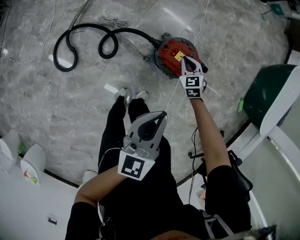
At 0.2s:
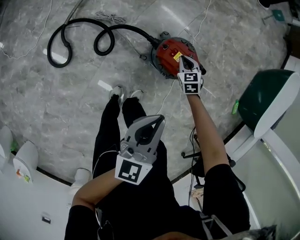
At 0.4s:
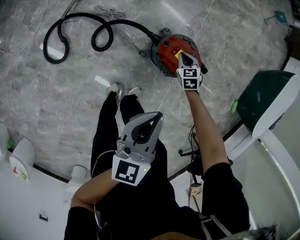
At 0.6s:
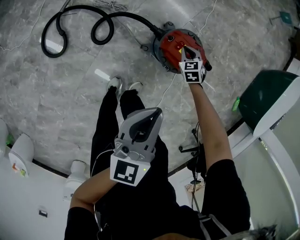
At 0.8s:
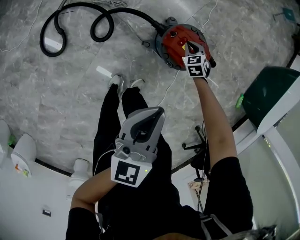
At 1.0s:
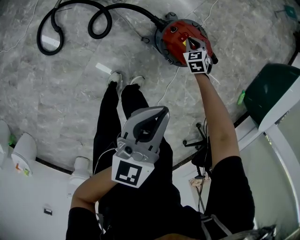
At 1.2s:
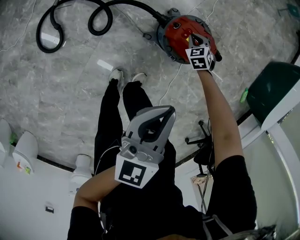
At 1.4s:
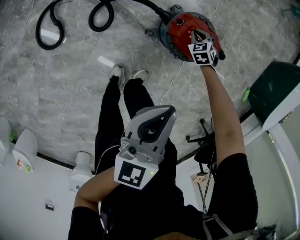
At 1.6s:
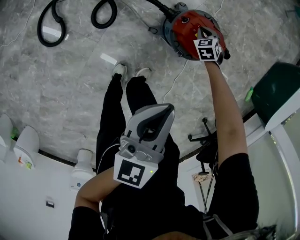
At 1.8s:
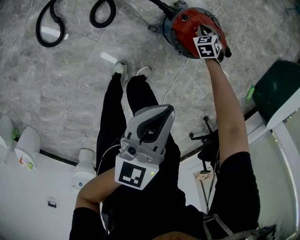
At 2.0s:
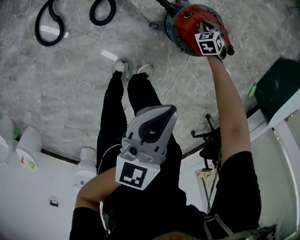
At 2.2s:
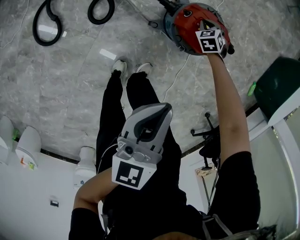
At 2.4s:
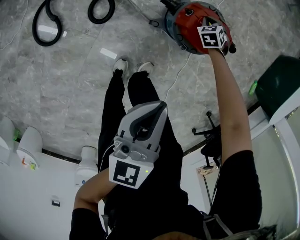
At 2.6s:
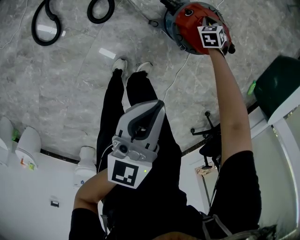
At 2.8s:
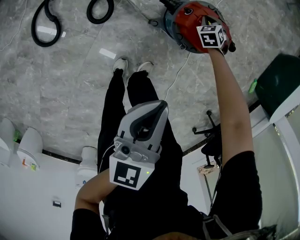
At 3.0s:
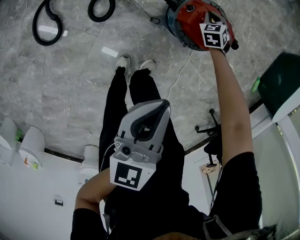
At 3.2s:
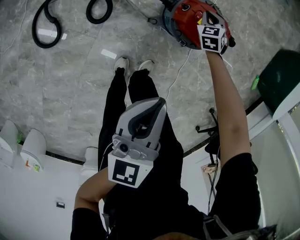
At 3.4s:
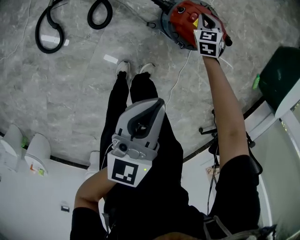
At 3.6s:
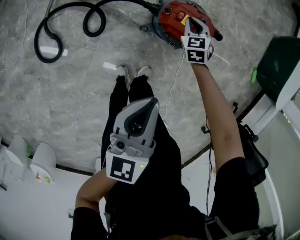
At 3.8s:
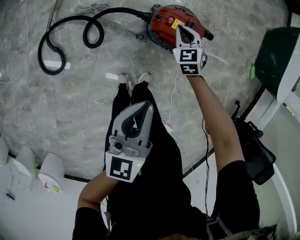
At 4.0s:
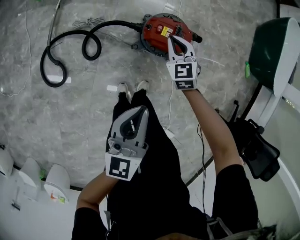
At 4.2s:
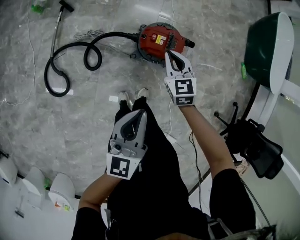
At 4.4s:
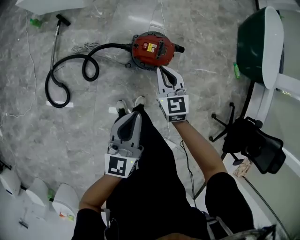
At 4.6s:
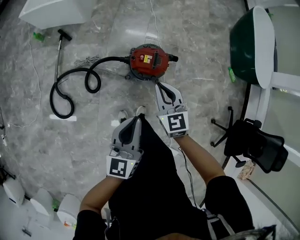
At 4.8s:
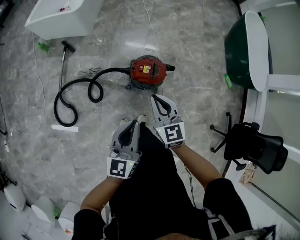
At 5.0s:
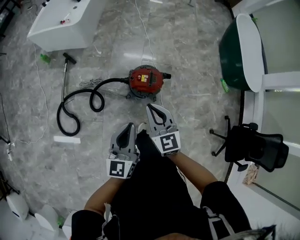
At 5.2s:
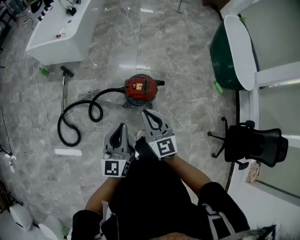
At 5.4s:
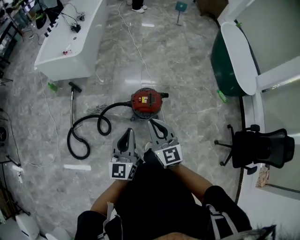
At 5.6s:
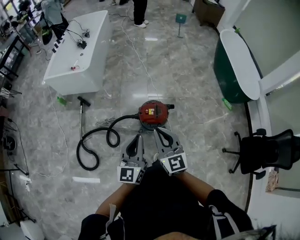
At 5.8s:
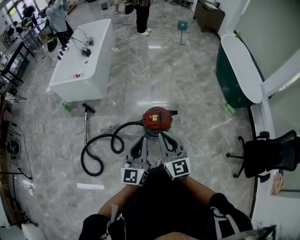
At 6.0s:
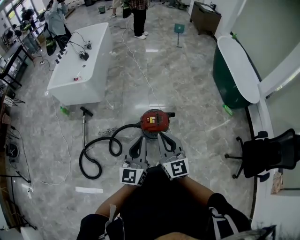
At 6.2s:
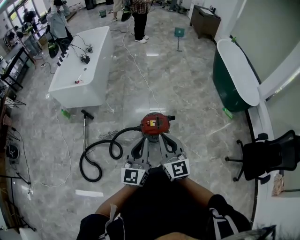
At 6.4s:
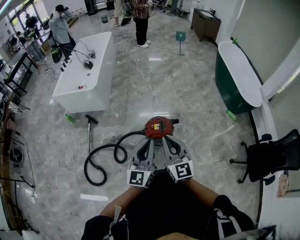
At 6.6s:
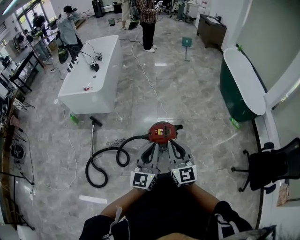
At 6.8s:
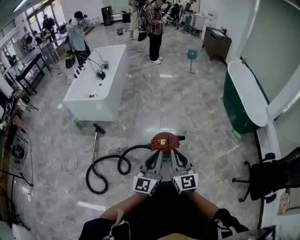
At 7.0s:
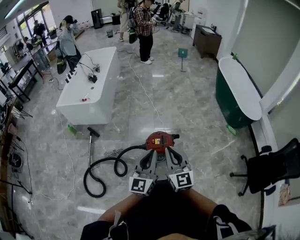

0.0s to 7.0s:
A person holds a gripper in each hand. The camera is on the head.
0.0s to 1.4s: The left gripper heads downward, covering about 10 cm. Meanwhile the right gripper moves downward, approximately 20 cm.
1.4s to 2.8s: The left gripper changes place by approximately 5 cm.
2.8s to 4.2s: The right gripper goes approximately 35 cm upward, and swivels roughly 40 degrees, while the left gripper heads upward, covering about 15 cm.
4.2s to 5.6s: The right gripper is displaced upward and backward by roughly 35 cm, and swivels about 30 degrees. Meanwhile the left gripper shifts about 20 cm upward.
5.6s to 7.0s: There are only small adjustments of the grippers.

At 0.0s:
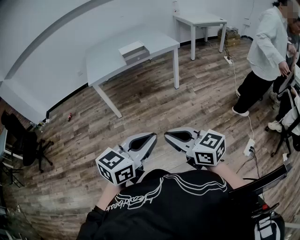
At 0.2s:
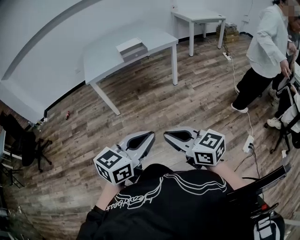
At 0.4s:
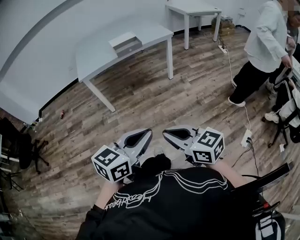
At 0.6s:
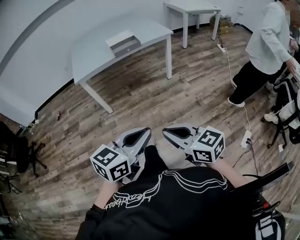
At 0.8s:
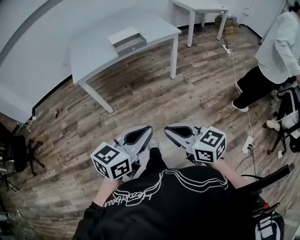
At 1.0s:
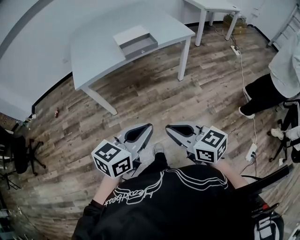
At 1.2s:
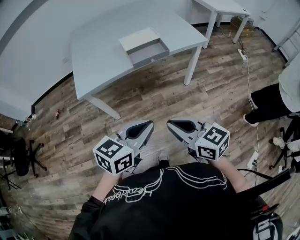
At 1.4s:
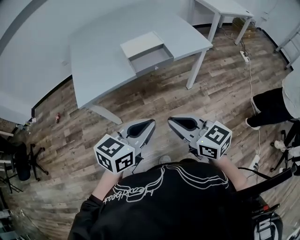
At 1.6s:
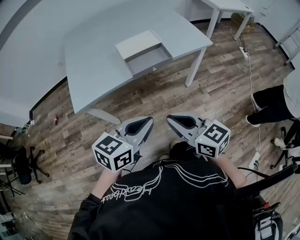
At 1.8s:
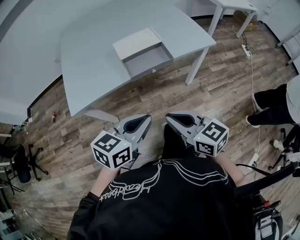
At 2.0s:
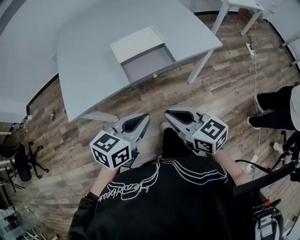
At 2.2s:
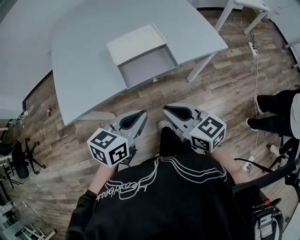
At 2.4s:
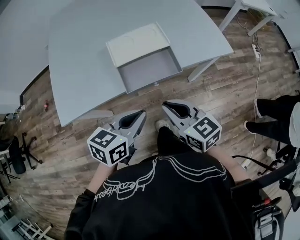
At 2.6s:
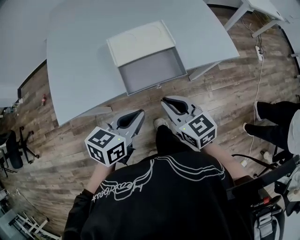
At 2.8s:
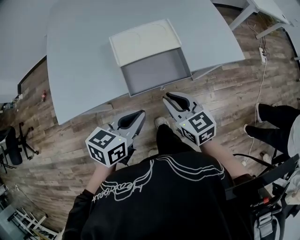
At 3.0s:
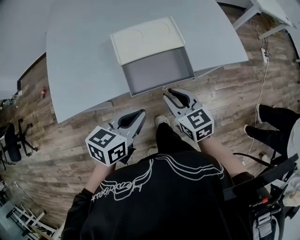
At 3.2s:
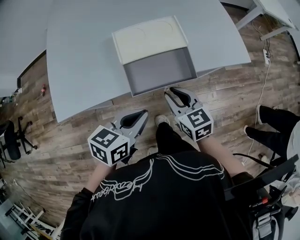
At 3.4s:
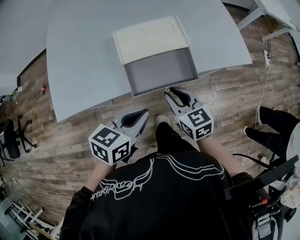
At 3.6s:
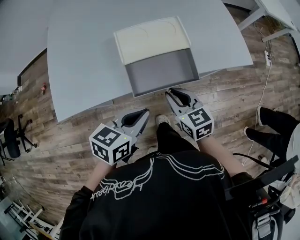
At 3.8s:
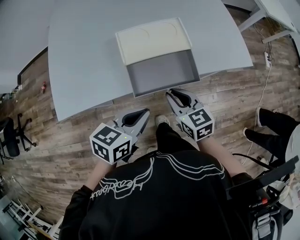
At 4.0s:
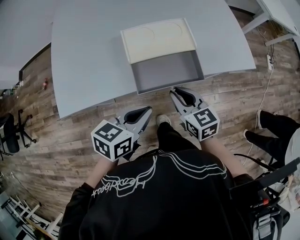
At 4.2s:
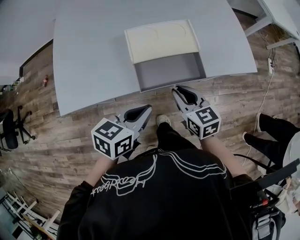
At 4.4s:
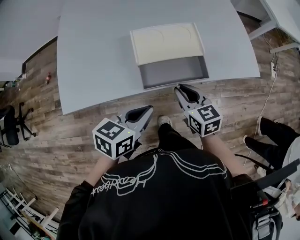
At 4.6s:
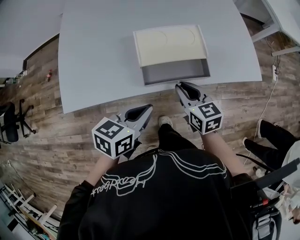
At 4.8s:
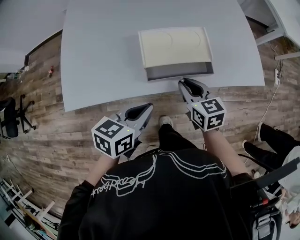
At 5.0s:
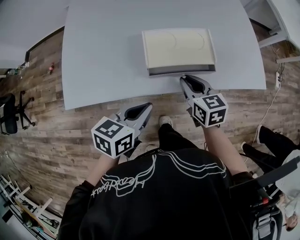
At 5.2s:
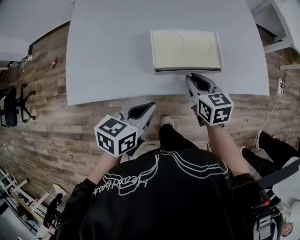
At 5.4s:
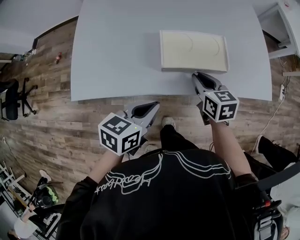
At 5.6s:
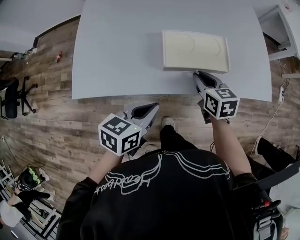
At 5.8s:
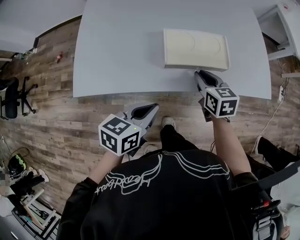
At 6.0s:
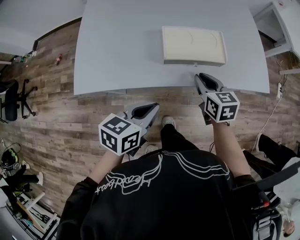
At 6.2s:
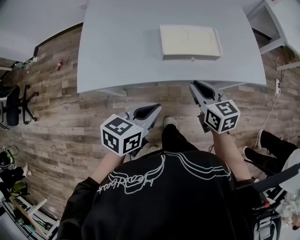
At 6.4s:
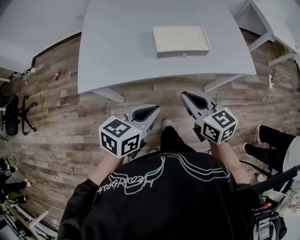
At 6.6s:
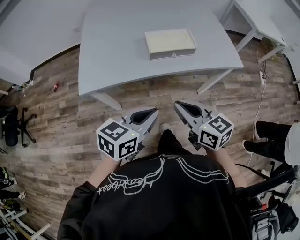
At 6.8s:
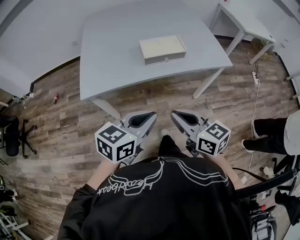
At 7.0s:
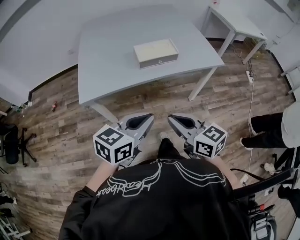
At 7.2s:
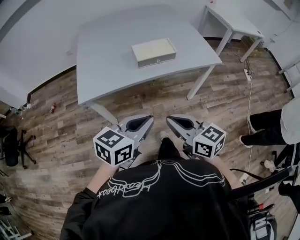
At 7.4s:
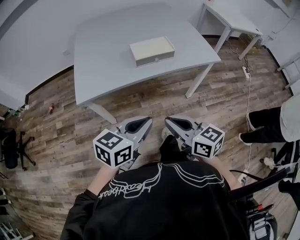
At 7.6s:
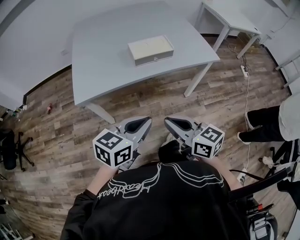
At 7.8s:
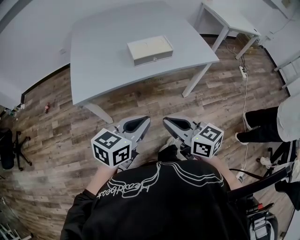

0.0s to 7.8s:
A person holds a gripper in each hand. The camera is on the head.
0.0s to 1.6s: Both grippers are carried forward, roughly 50 cm.
1.6s to 3.2s: Both grippers move forward and downward, some 30 cm. The left gripper changes its angle by some 20 degrees.
3.2s to 4.6s: The grippers move only a little.
4.6s to 6.2s: The right gripper reaches roughly 5 cm forward, then returns. The left gripper moves approximately 5 cm.
6.2s to 7.8s: The left gripper is displaced backward and upward by roughly 20 cm, and turns by about 20 degrees. The right gripper goes approximately 30 cm backward and upward.

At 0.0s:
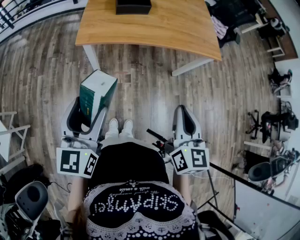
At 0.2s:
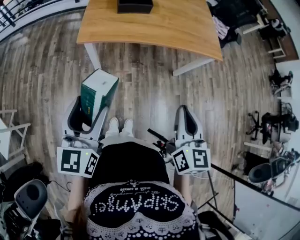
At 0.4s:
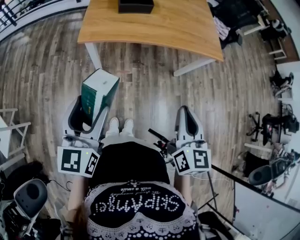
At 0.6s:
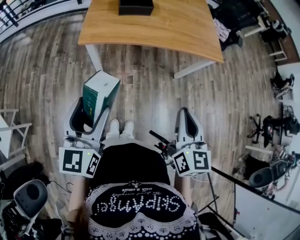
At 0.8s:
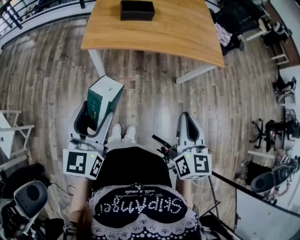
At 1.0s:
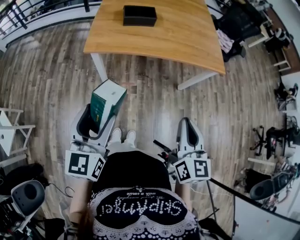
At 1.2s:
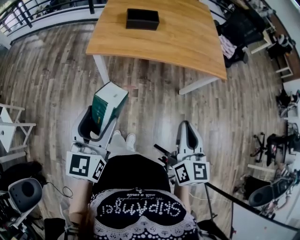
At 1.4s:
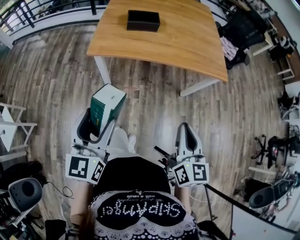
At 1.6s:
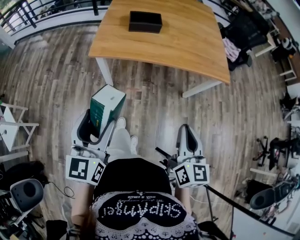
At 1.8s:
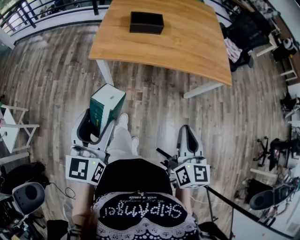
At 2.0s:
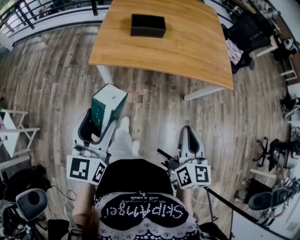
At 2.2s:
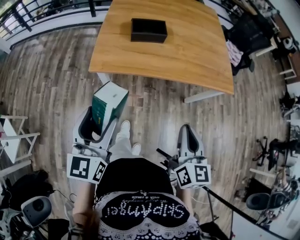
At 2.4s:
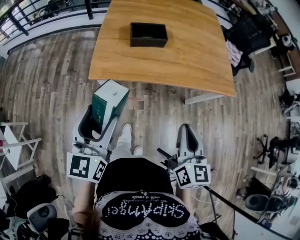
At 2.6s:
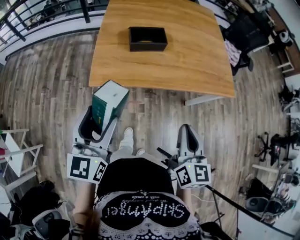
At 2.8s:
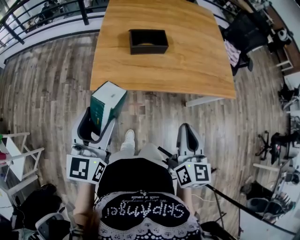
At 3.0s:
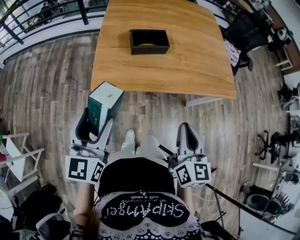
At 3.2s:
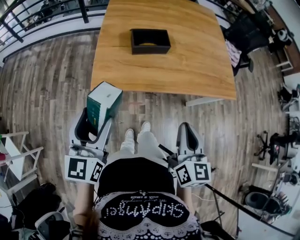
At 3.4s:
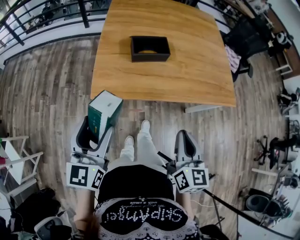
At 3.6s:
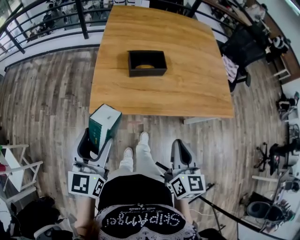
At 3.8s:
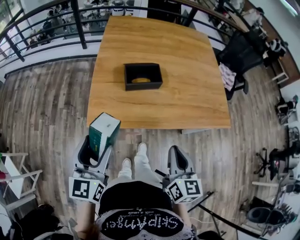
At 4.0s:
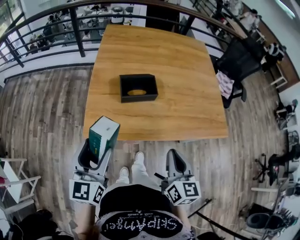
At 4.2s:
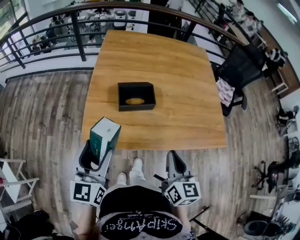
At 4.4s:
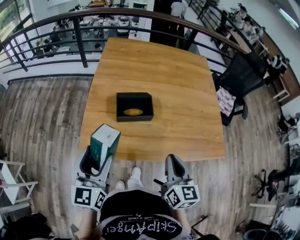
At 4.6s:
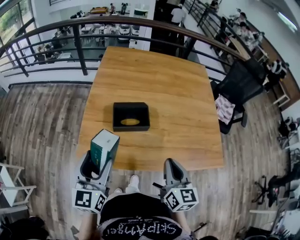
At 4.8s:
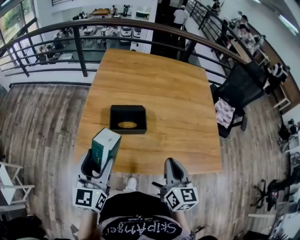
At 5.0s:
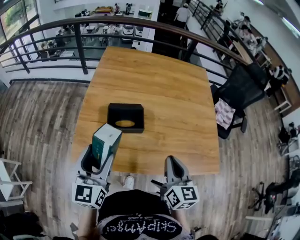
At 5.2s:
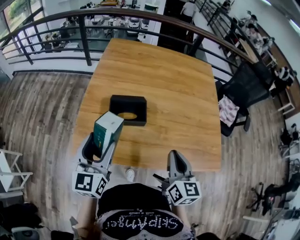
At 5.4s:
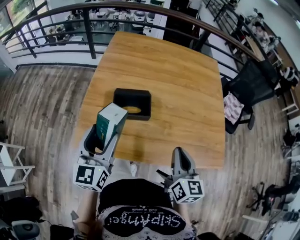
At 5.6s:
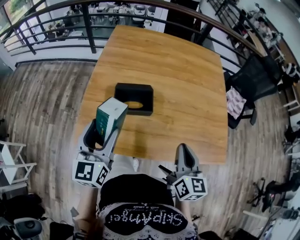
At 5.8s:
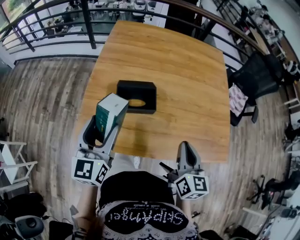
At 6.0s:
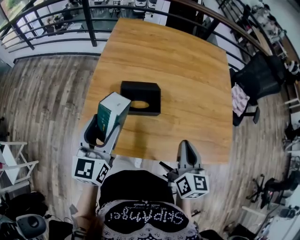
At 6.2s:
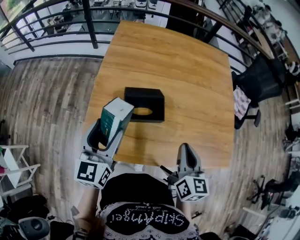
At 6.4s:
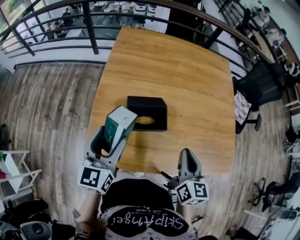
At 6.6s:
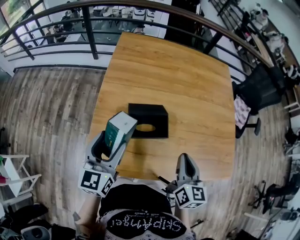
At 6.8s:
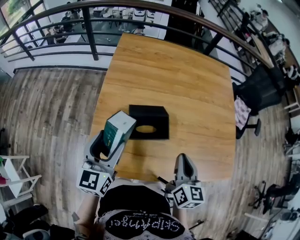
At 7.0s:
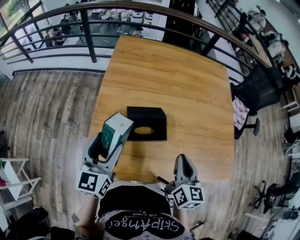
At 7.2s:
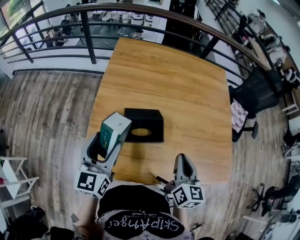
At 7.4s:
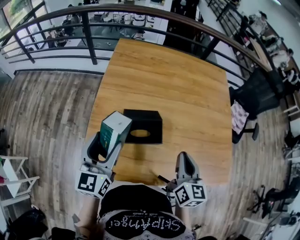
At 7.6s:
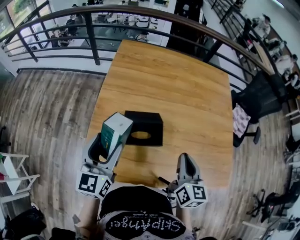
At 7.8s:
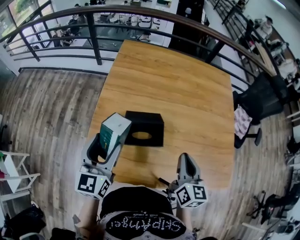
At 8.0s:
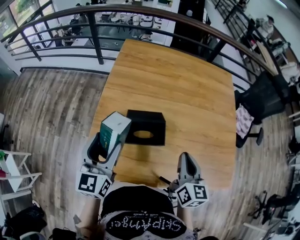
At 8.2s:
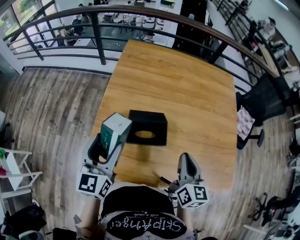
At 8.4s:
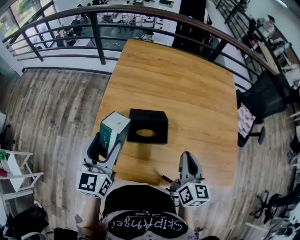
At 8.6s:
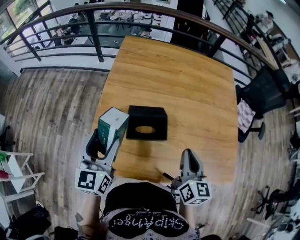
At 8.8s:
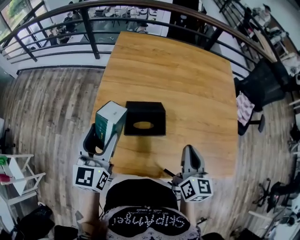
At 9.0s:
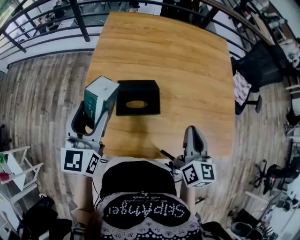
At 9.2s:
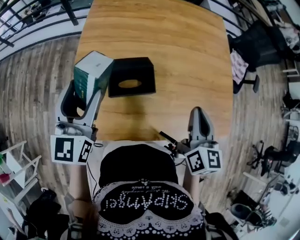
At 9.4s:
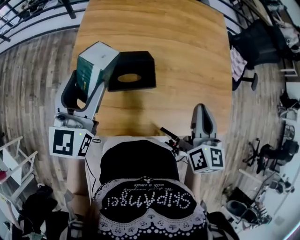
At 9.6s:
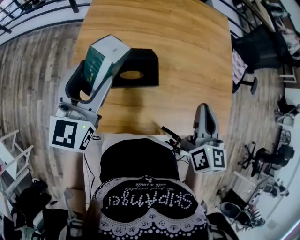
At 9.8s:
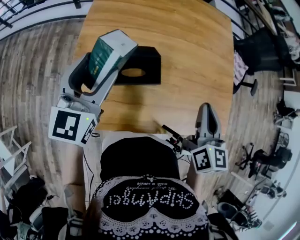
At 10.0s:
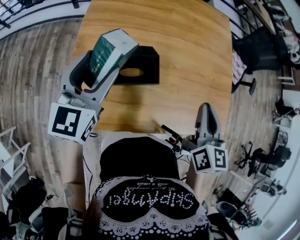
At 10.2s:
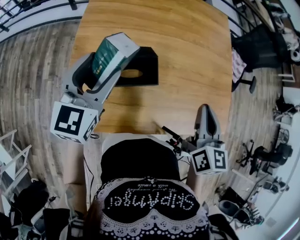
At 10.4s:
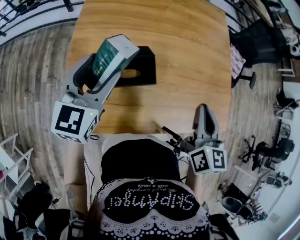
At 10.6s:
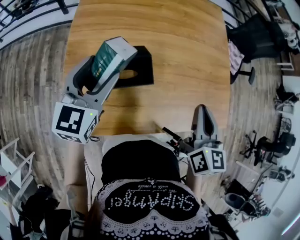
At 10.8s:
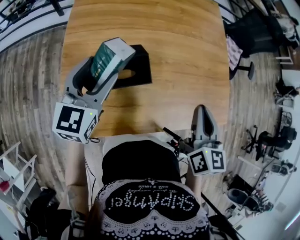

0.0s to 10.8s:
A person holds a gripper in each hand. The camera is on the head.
0.0s to 1.6s: The grippers stay close to where they were, moving slightly.
1.6s to 3.0s: Both grippers move forward and to the left, roughly 20 cm.
3.0s to 4.6s: The right gripper travels forward by some 20 cm. Meanwhile the left gripper shifts about 20 cm forward and to the right.
4.6s to 6.2s: Both grippers move forward, approximately 10 cm.
6.2s to 7.8s: The right gripper is displaced forward by some 5 cm.
7.8s to 9.2s: The right gripper changes place by roughly 5 cm.
9.2s to 10.8s: The left gripper is displaced downward, forward and to the right by roughly 10 cm.
